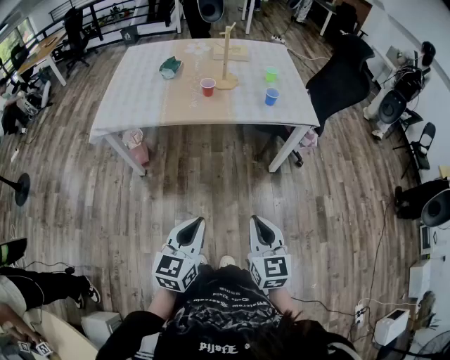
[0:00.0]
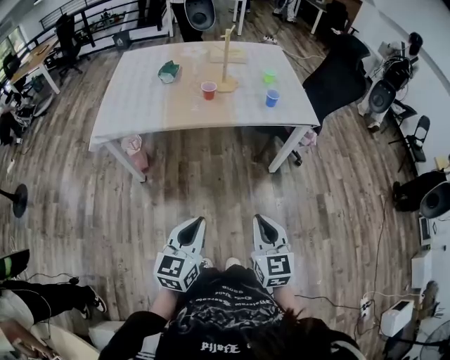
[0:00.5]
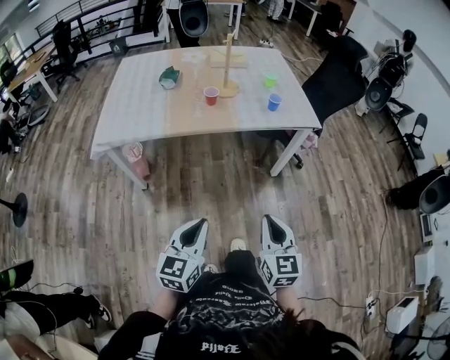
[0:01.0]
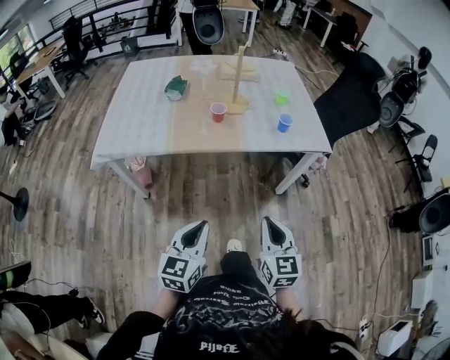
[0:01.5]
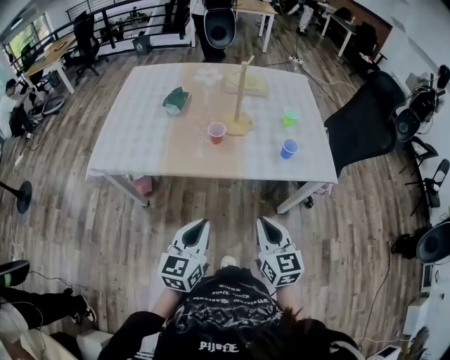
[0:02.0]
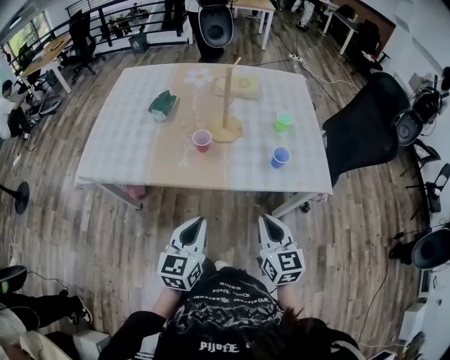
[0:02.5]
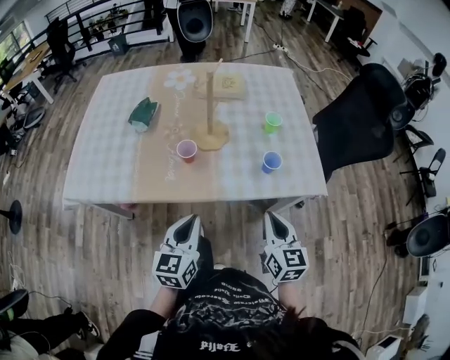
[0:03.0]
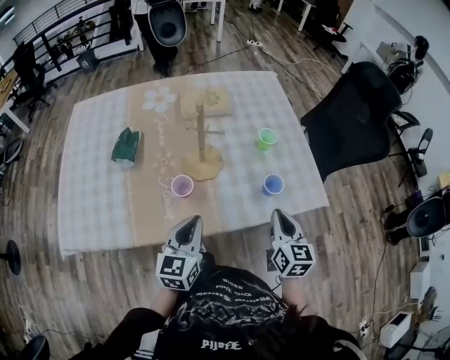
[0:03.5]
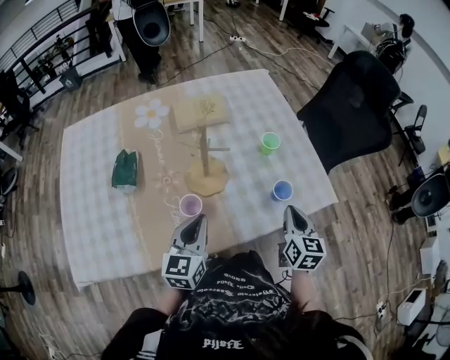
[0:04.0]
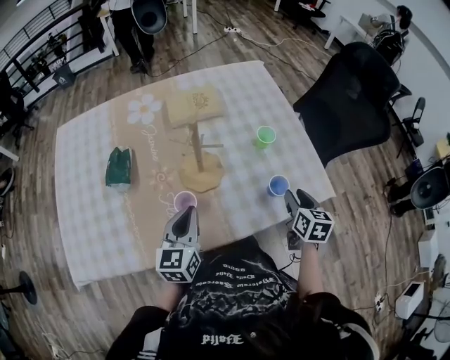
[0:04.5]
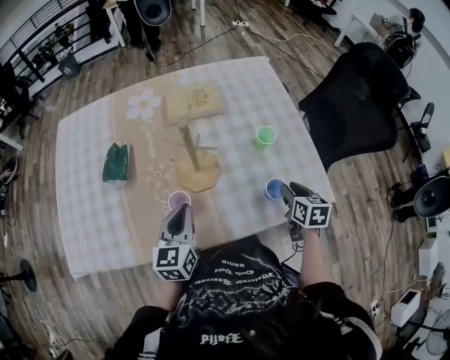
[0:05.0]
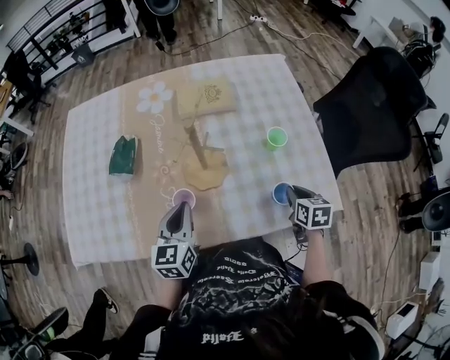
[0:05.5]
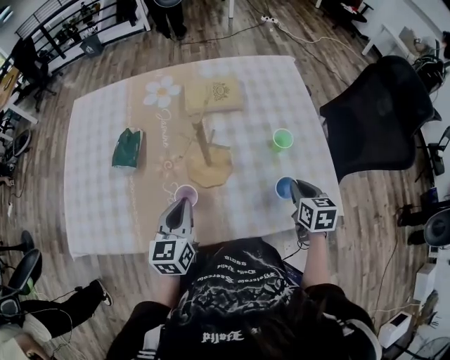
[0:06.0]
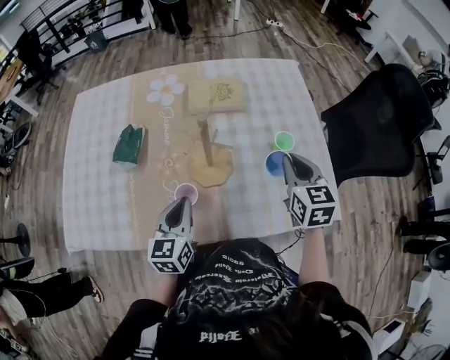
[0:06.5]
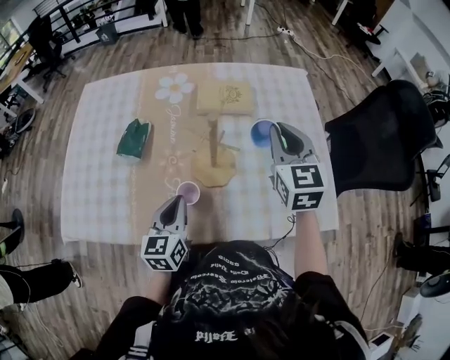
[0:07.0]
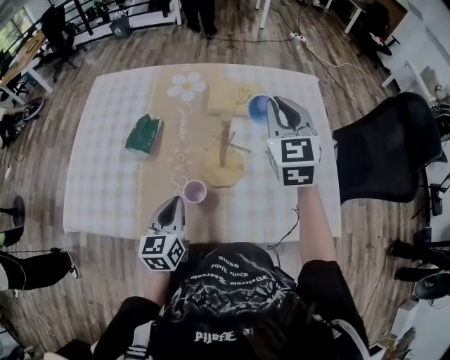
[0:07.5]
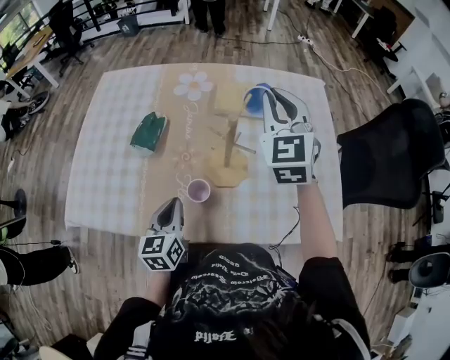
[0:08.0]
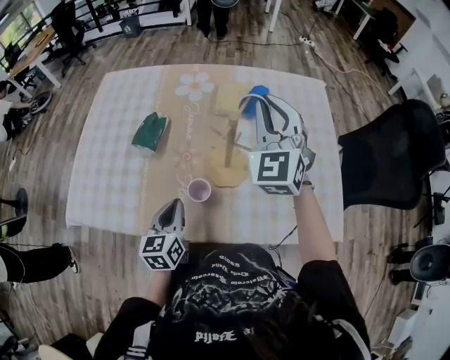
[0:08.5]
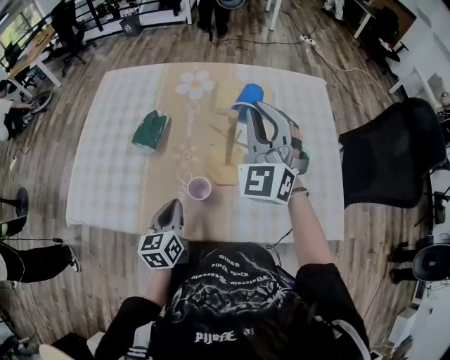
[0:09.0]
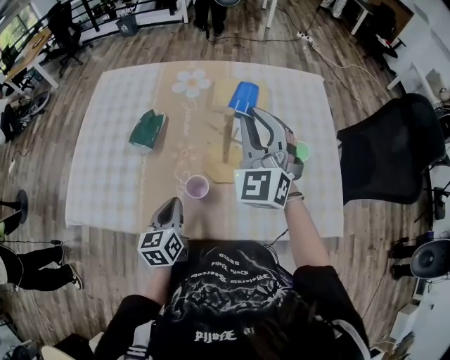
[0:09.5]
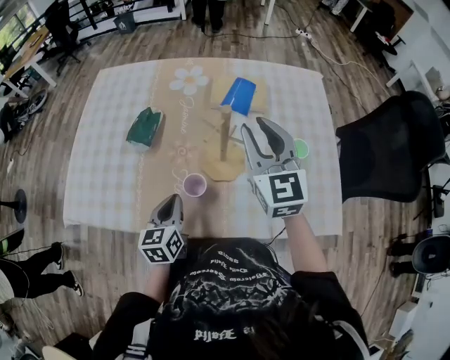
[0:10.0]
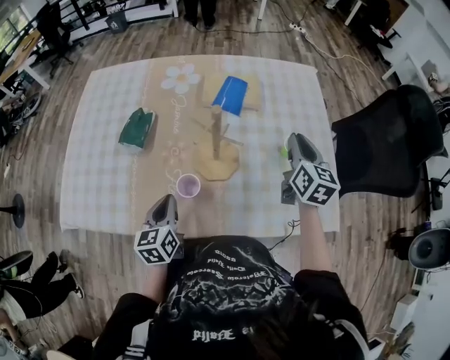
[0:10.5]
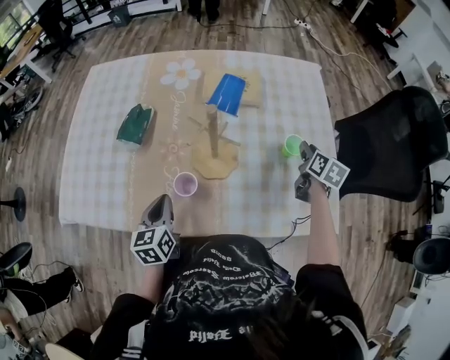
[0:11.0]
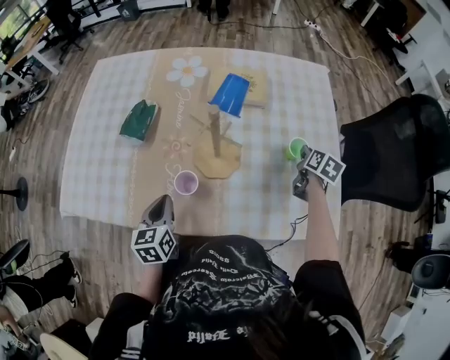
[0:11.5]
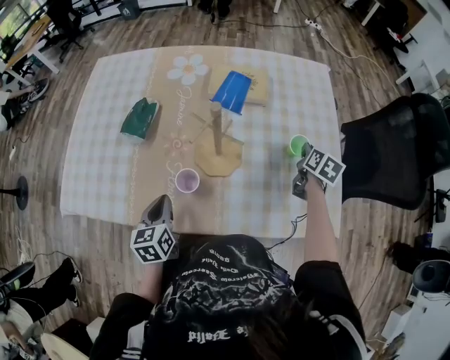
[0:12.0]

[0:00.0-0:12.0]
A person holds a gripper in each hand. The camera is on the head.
0:00.0 to 0:02.0: Both grippers travel together forward, about 30 cm.
0:02.0 to 0:04.0: The left gripper ends up approximately 40 cm from where it was; the right gripper moves approximately 35 cm, and swivels roughly 40 degrees.
0:04.0 to 0:06.0: The right gripper goes roughly 15 cm forward and downward, swivels roughly 30 degrees, and opens and closes again, while the left gripper shifts about 5 cm forward.
0:06.0 to 0:08.0: The left gripper travels to the left by approximately 5 cm; the right gripper is displaced upward, to the left and forward by roughly 40 cm, and angles its fingers upward, by approximately 30 degrees.
0:08.0 to 0:10.0: The right gripper goes some 10 cm backward and downward, turns by approximately 20 degrees, and opens up.
0:10.0 to 0:12.0: The right gripper goes roughly 35 cm to the right and downward, angles its fingers downward, by roughly 40 degrees, and closes up.

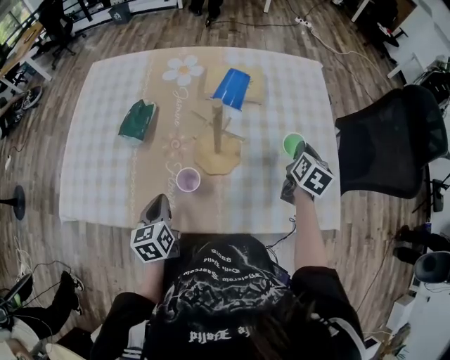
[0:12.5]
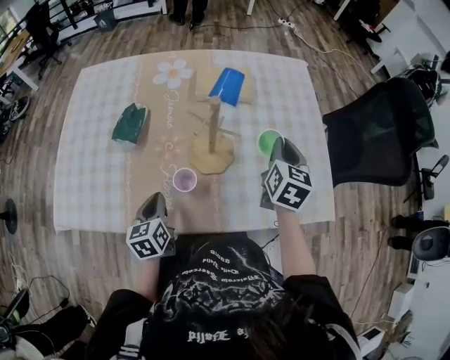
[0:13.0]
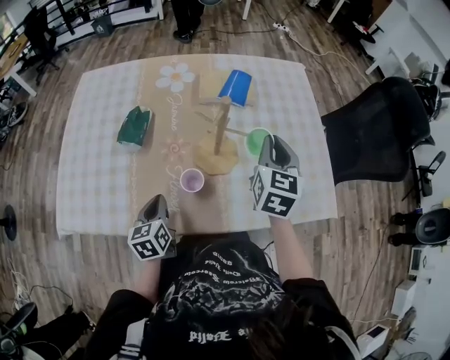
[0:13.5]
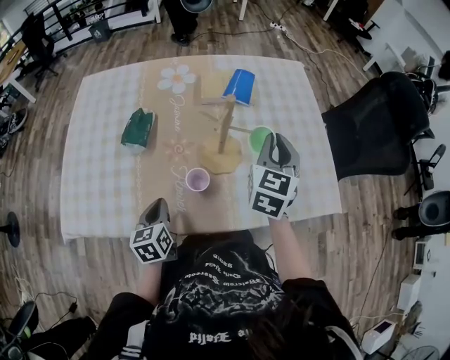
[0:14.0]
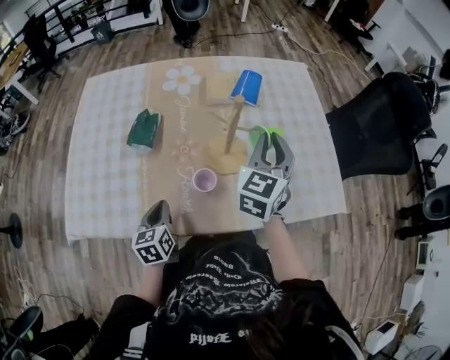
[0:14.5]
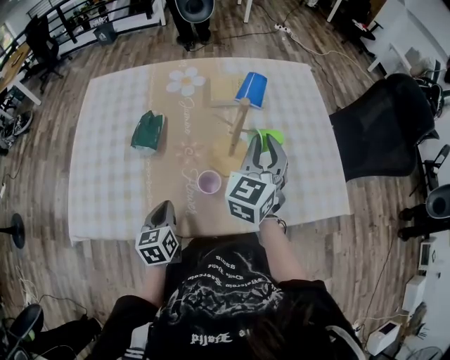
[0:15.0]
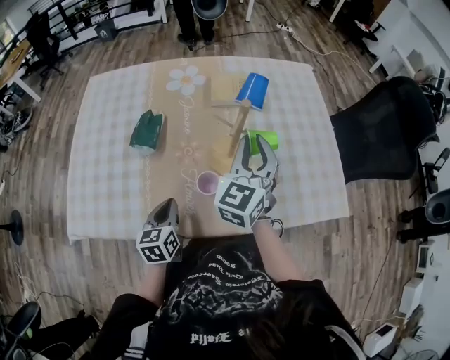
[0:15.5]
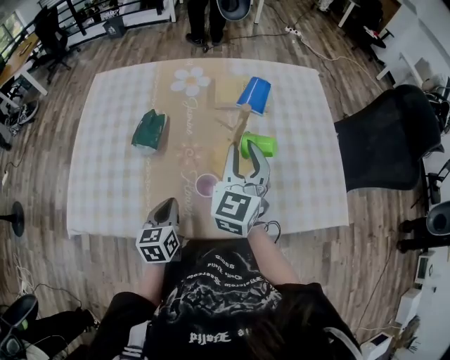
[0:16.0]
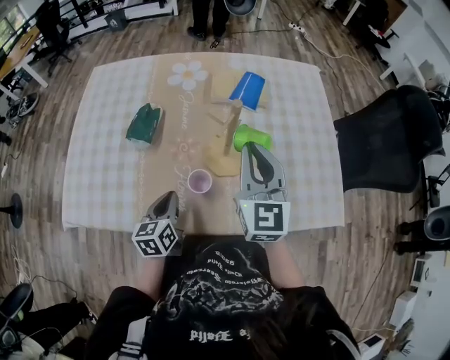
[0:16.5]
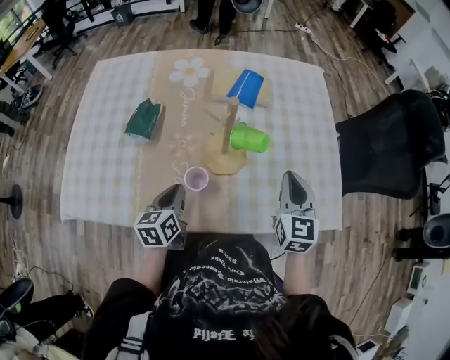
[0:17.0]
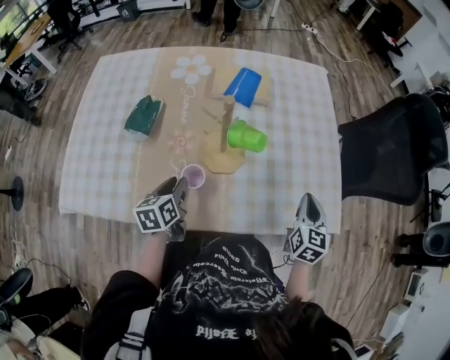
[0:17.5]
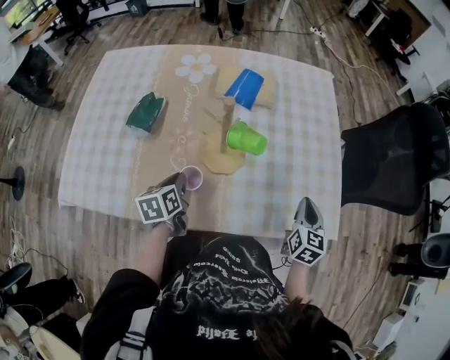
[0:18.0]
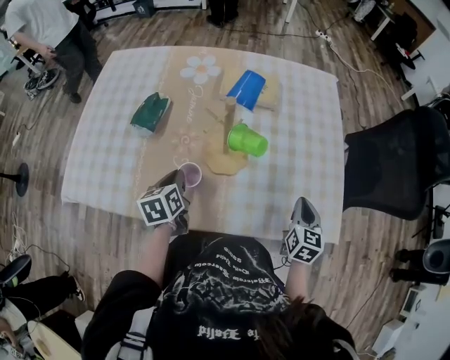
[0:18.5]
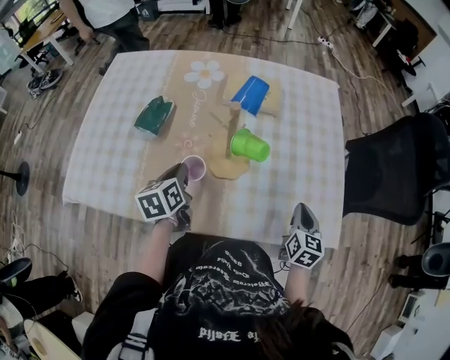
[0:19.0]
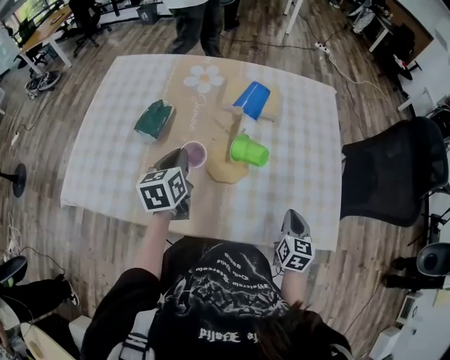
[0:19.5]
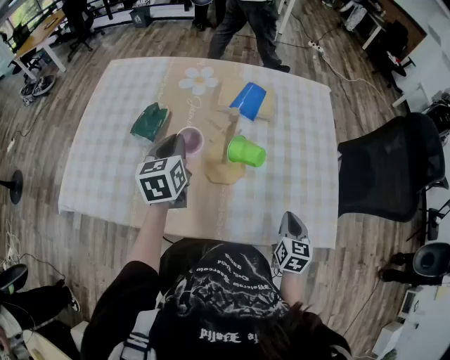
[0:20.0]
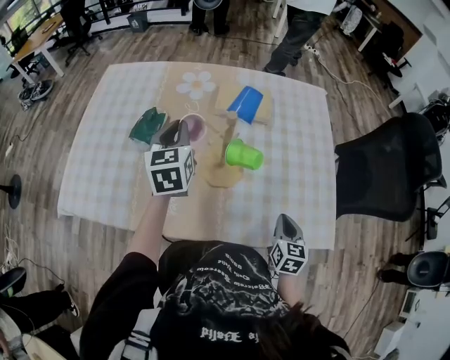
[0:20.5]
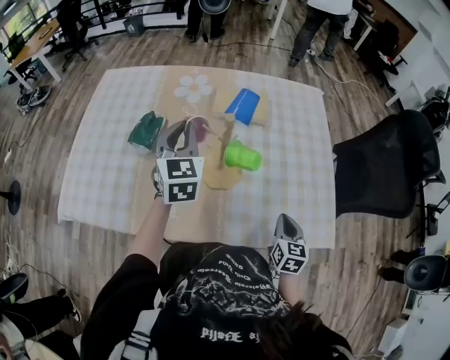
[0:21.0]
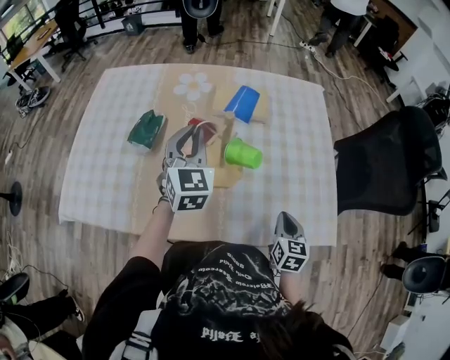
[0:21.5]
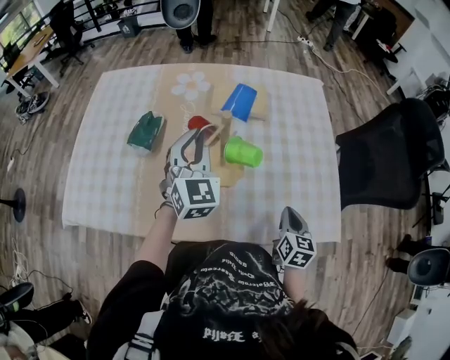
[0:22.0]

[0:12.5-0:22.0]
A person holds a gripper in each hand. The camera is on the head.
0:12.5 to 0:14.5: The right gripper goes roughly 25 cm to the left, upward and backward, and changes its angle by roughly 30 degrees. The left gripper heads to the left, covering roughly 5 cm.
0:14.5 to 0:16.5: The right gripper swivels roughly 30 degrees. The left gripper moves to the right, roughly 5 cm.
0:16.5 to 0:18.0: The right gripper moves to the right and downward, about 30 cm, and changes its angle by approximately 30 degrees. The left gripper moves approximately 5 cm.
0:18.0 to 0:20.0: The left gripper is displaced upward and forward by some 15 cm, and turns by roughly 20 degrees. Meanwhile the right gripper shifts by approximately 5 cm.
0:20.0 to 0:22.0: The left gripper is displaced to the right and upward by approximately 10 cm, and rolls clockwise, seen from behind, by about 40 degrees.

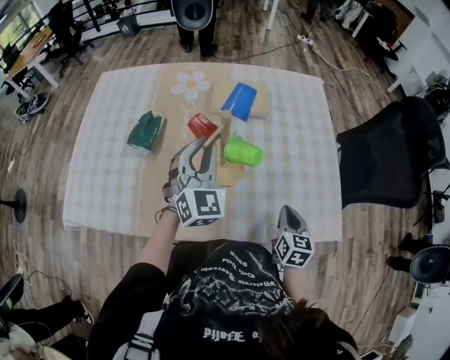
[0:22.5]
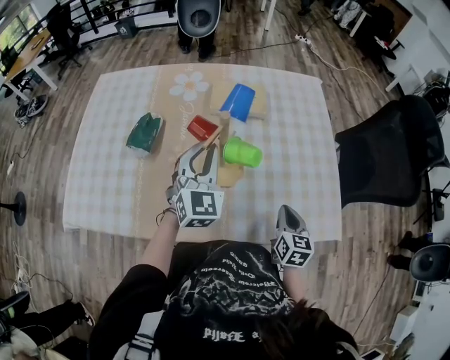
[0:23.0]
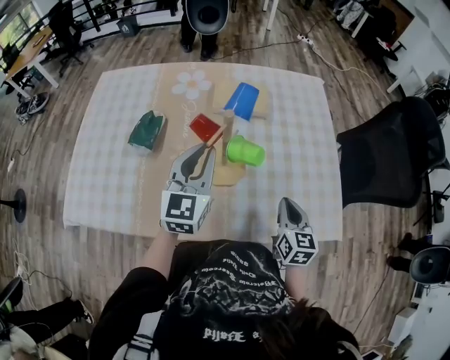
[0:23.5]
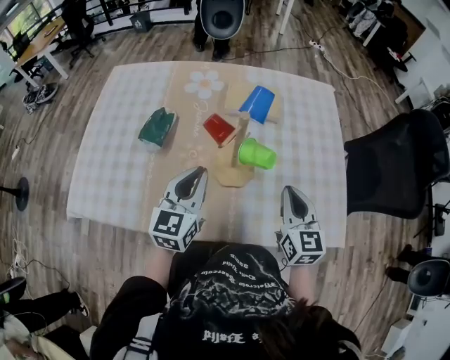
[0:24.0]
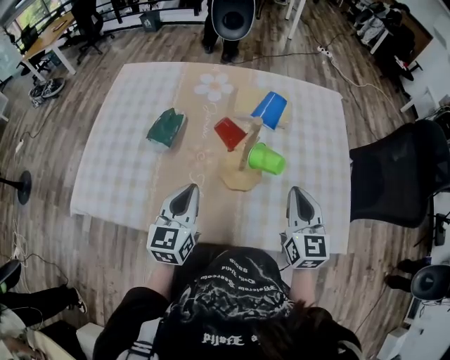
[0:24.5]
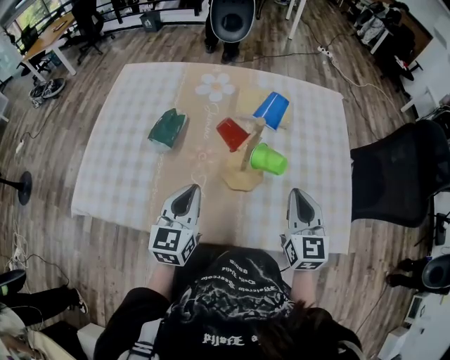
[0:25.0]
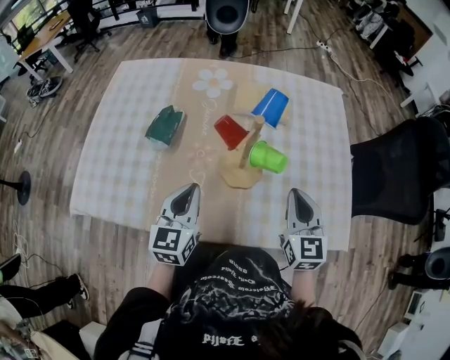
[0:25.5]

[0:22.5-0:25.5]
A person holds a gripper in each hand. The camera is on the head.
0:22.5 to 0:24.0: The right gripper is displaced upward and to the left by some 15 cm, and turns by approximately 20 degrees, while the left gripper is displaced backward by some 10 cm, and rotates some 40 degrees.
0:24.0 to 0:25.5: The left gripper shifts by about 5 cm.

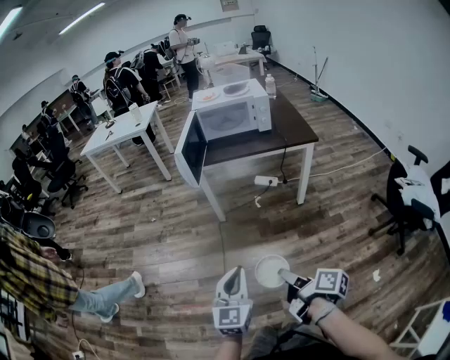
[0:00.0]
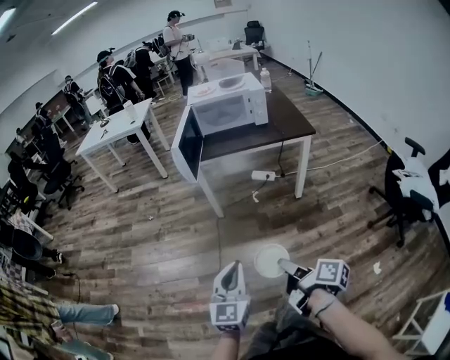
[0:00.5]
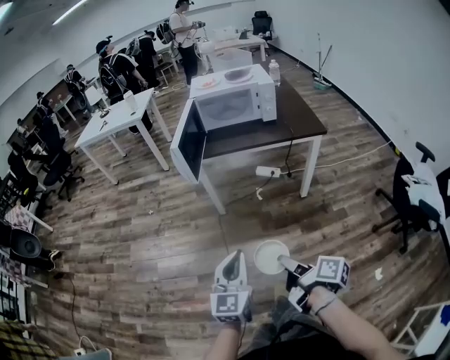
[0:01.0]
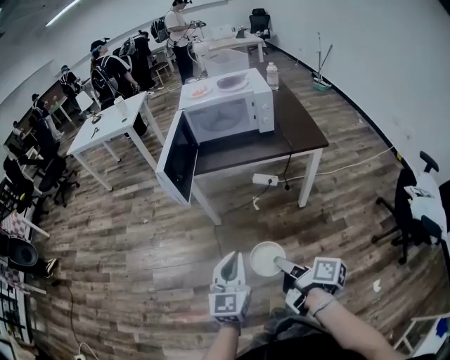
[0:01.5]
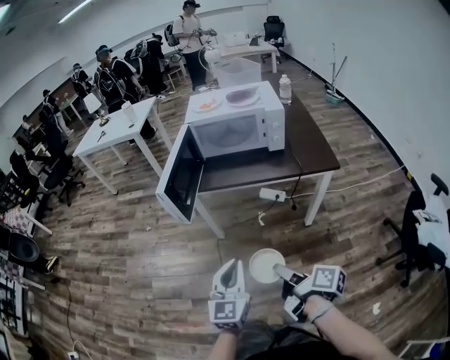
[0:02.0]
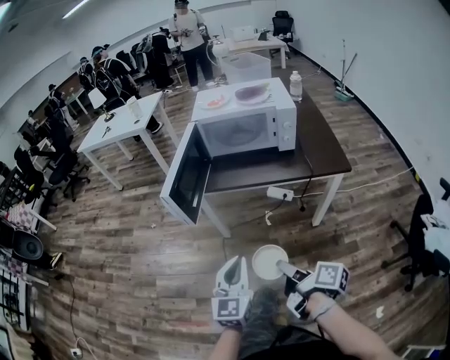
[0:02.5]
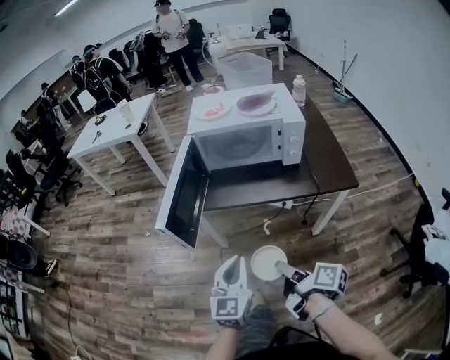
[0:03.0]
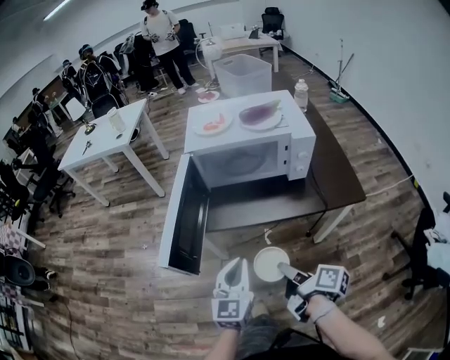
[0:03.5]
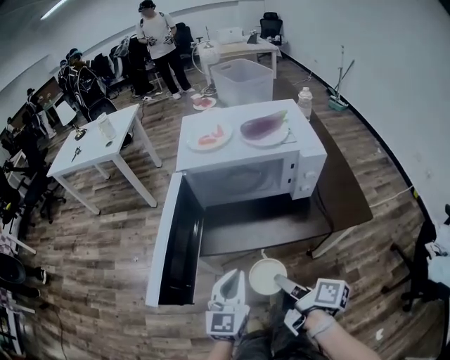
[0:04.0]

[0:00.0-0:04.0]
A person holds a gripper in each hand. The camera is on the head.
0:00.0 to 0:02.0: The left gripper changes place by some 25 cm.
0:02.0 to 0:04.0: The left gripper shifts by roughly 30 cm.
